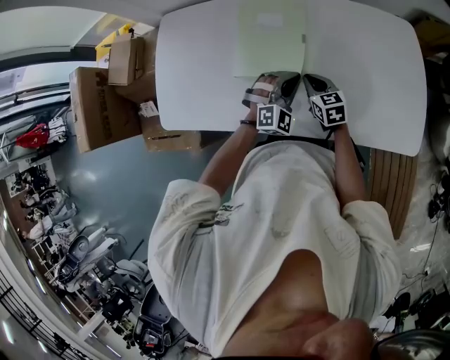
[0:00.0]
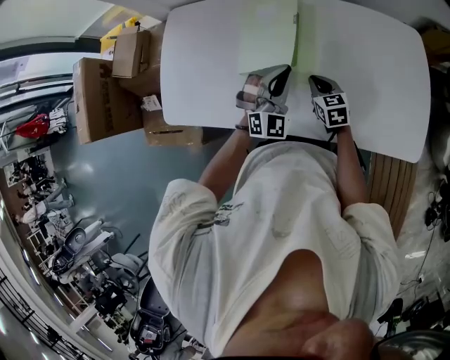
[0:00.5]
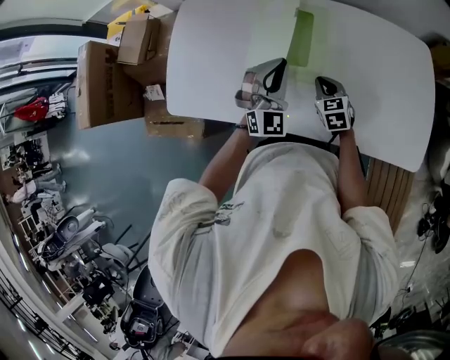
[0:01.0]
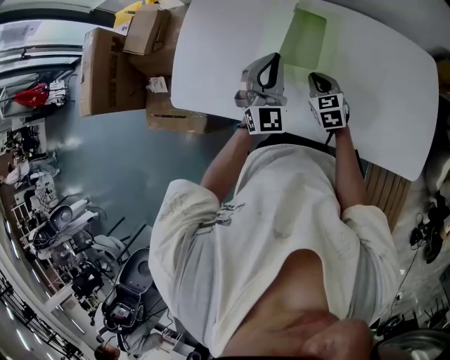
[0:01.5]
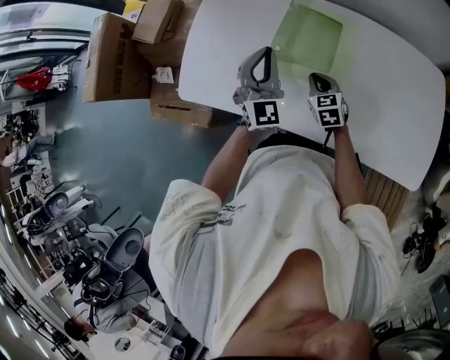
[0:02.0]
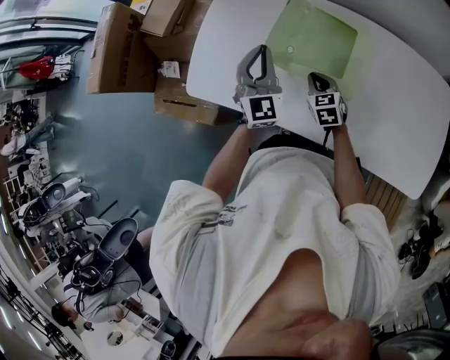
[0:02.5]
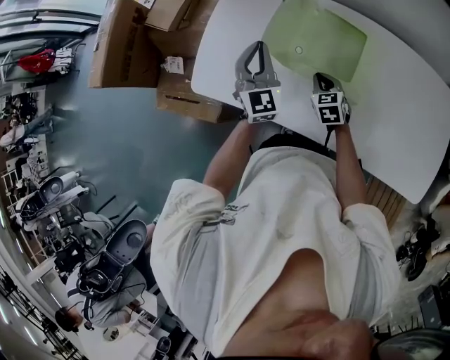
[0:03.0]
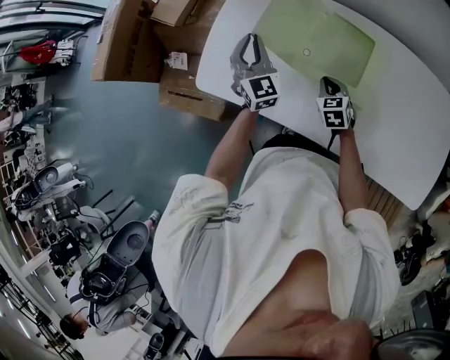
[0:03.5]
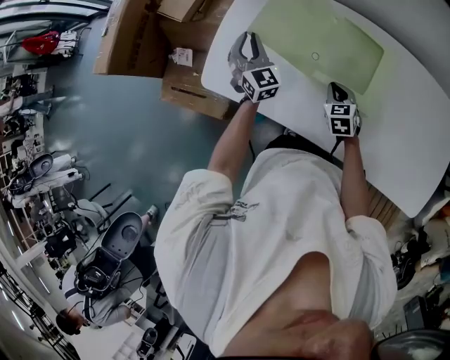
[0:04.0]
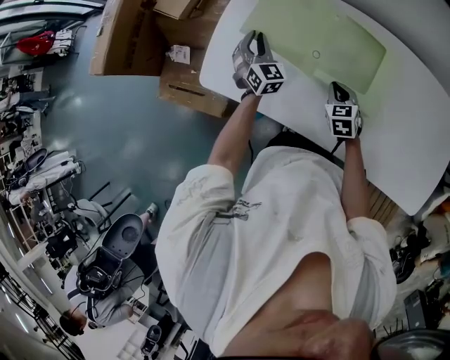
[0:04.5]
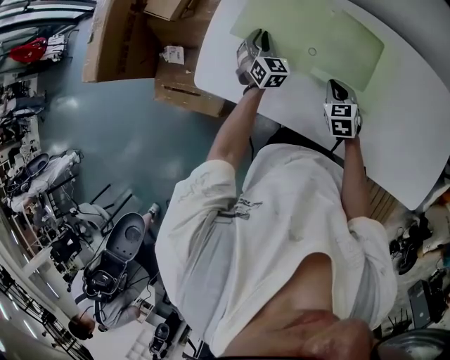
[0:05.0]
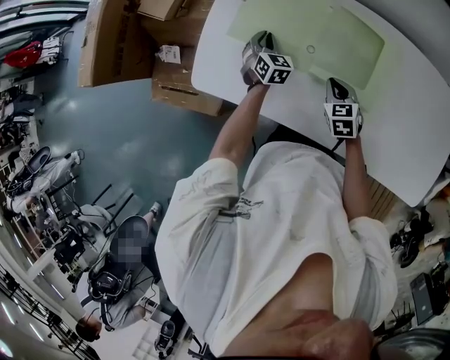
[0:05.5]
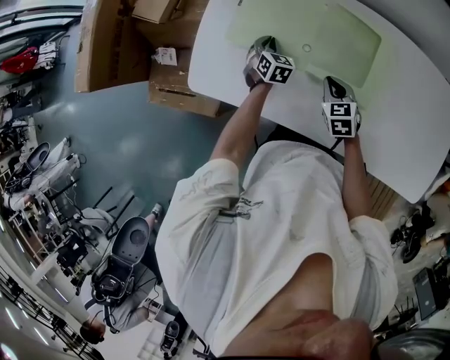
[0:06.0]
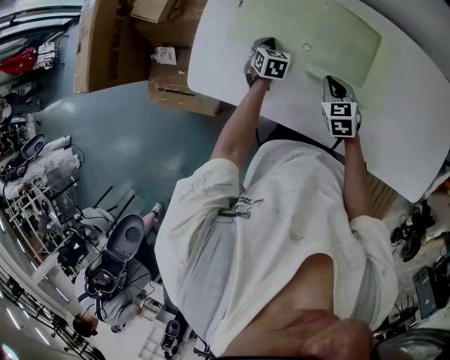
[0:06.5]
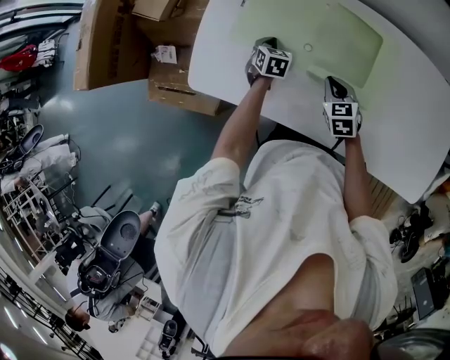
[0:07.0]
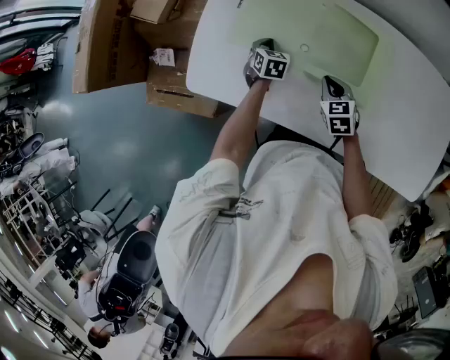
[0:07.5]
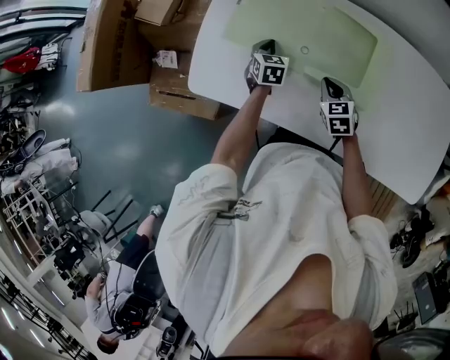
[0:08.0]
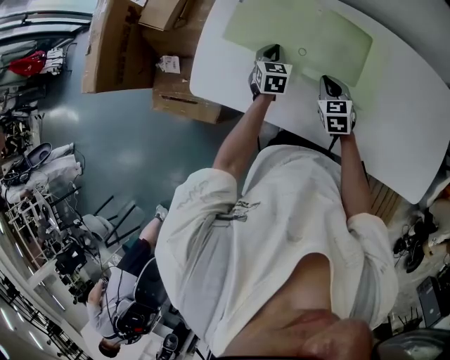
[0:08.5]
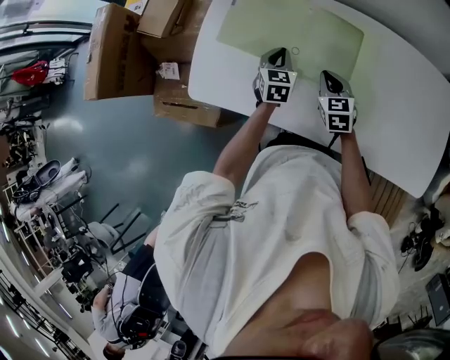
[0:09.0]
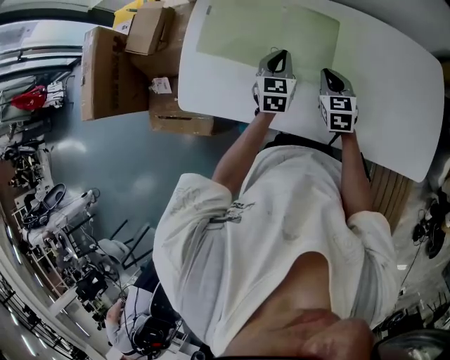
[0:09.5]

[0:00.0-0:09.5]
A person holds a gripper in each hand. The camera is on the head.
0:00.0 to 0:02.0: The left gripper goes approximately 25 cm to the left and upward, and turns by roughly 50 degrees, while the right gripper travels to the left by about 10 cm.
0:02.0 to 0:04.0: The right gripper shifts by approximately 5 cm, while the left gripper travels to the left, forward and downward by approximately 20 cm, and changes its angle by about 30 degrees.
0:04.0 to 0:05.5: The left gripper shifts approximately 15 cm downward and to the right, and turns by about 30 degrees.
0:05.5 to 0:07.5: The left gripper shifts by roughly 5 cm, and rotates roughly 20 degrees.
0:07.5 to 0:09.5: The right gripper goes roughly 10 cm to the right and upward. Meanwhile the left gripper travels upward, to the right and backward by some 20 cm, and changes its angle by roughly 30 degrees.

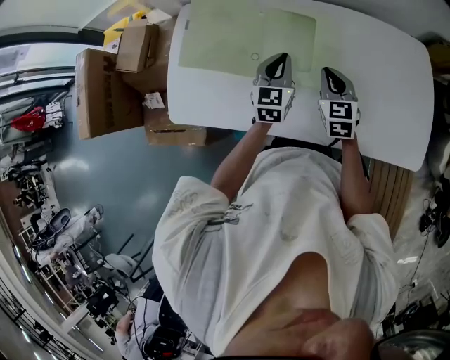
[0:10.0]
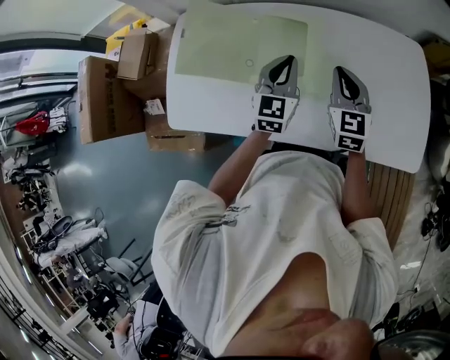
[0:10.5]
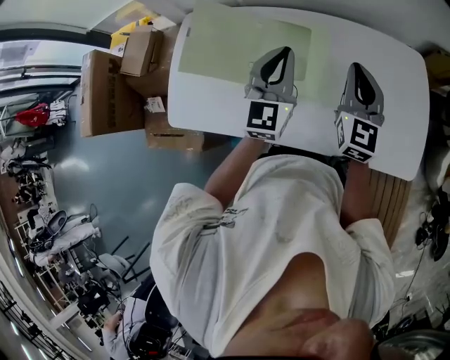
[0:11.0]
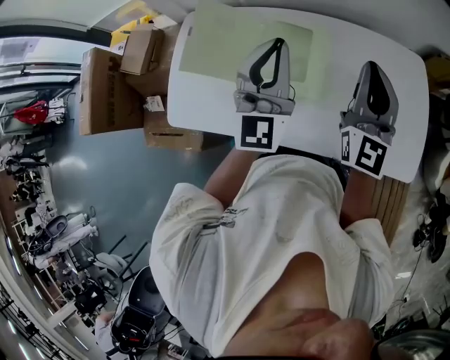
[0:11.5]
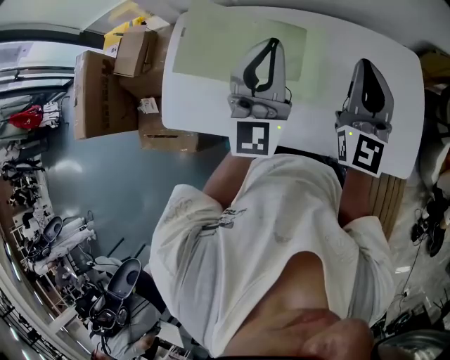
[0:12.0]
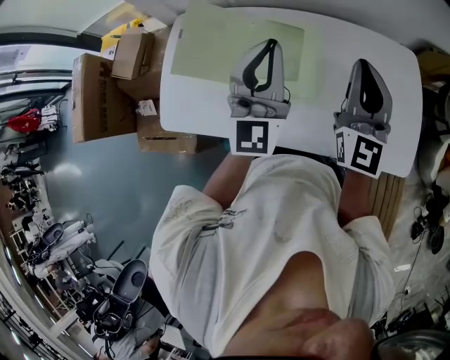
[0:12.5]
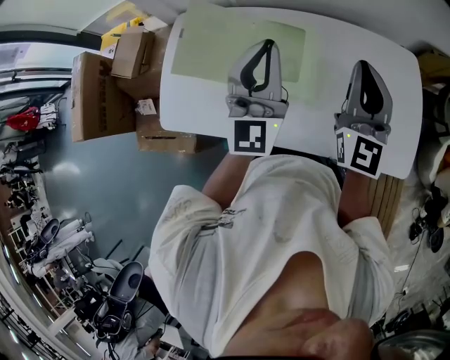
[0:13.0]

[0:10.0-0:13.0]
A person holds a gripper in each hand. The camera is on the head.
0:10.0 to 0:11.5: Both grippers travel together upward, some 25 cm. The left gripper points its fingers some 30 degrees further upward; the right gripper tilts its fingers about 40 degrees upward.
0:11.5 to 0:13.0: Neither gripper changes place.

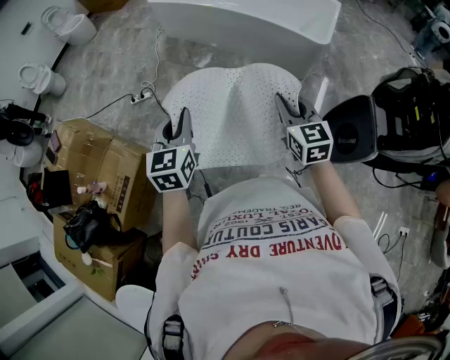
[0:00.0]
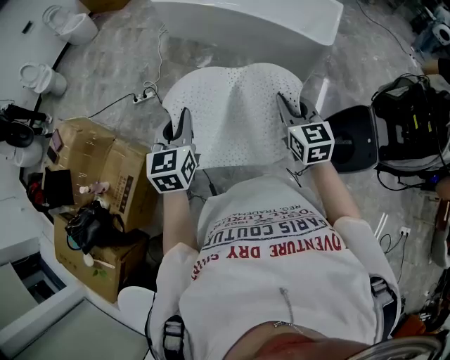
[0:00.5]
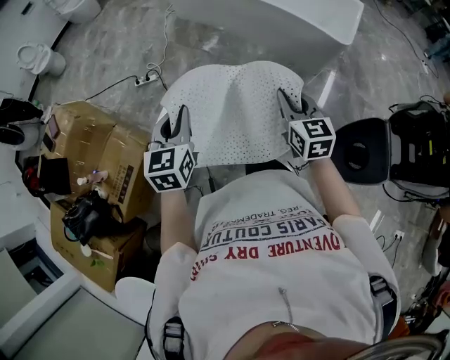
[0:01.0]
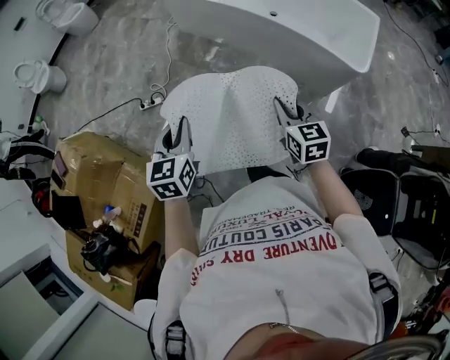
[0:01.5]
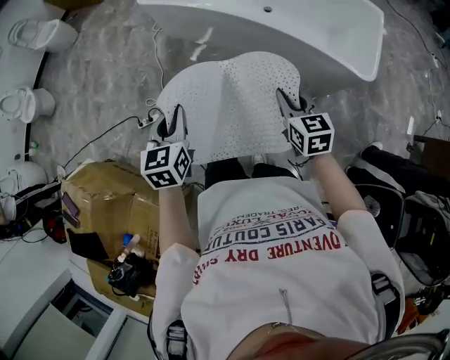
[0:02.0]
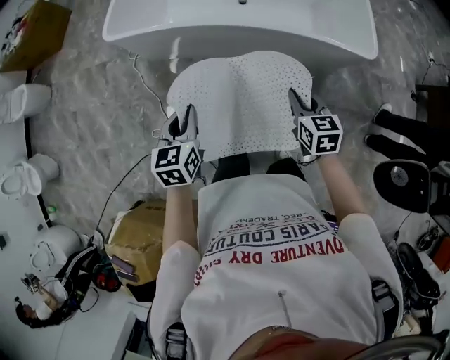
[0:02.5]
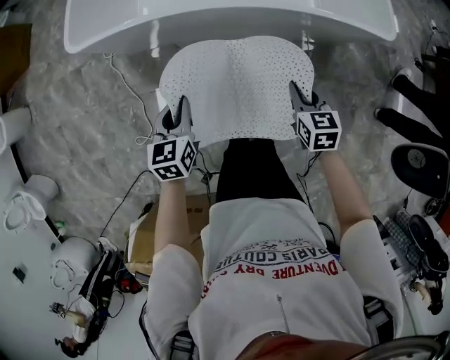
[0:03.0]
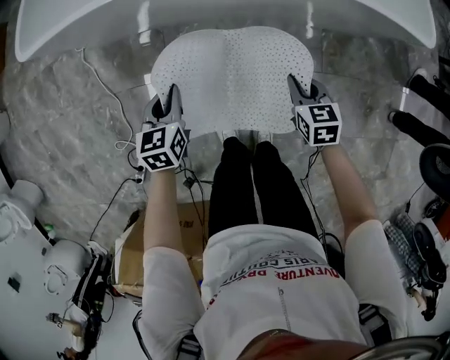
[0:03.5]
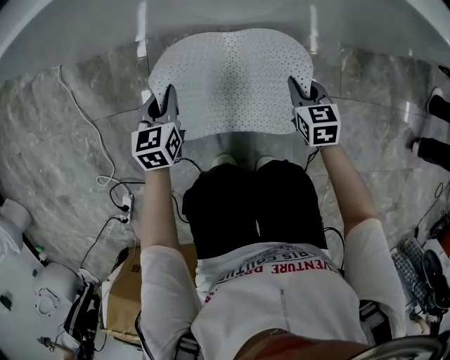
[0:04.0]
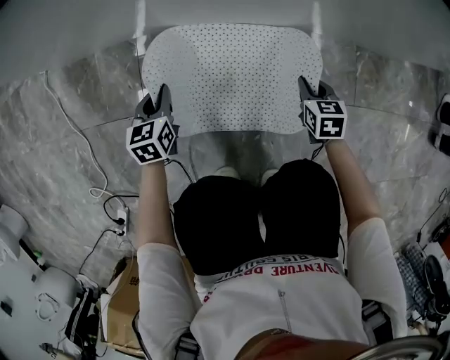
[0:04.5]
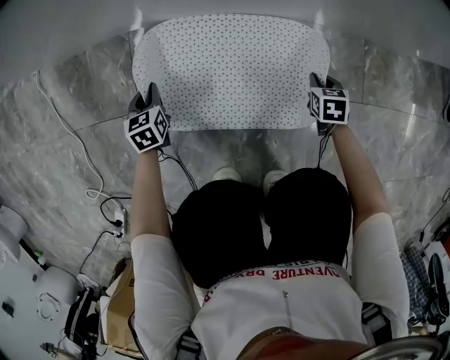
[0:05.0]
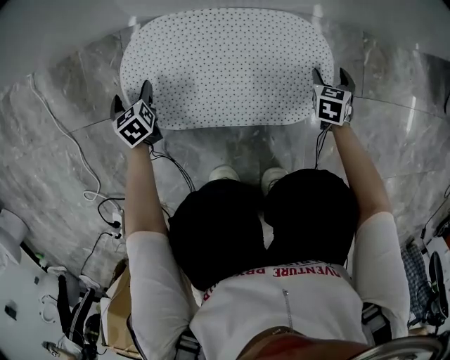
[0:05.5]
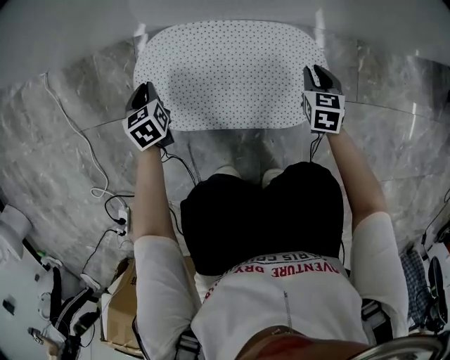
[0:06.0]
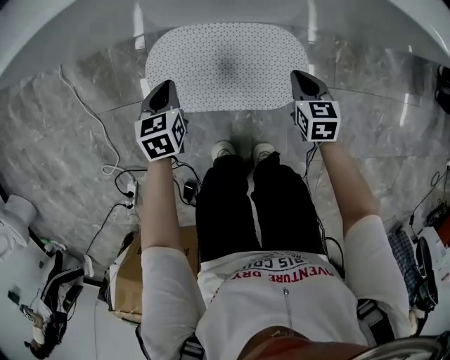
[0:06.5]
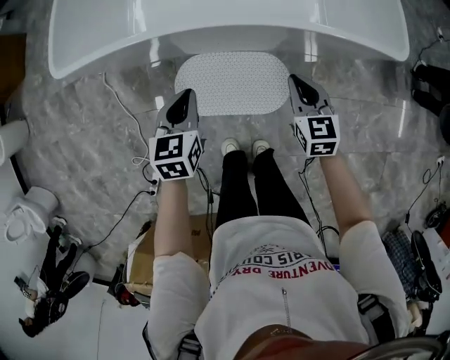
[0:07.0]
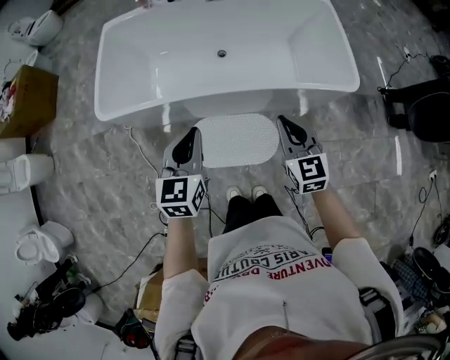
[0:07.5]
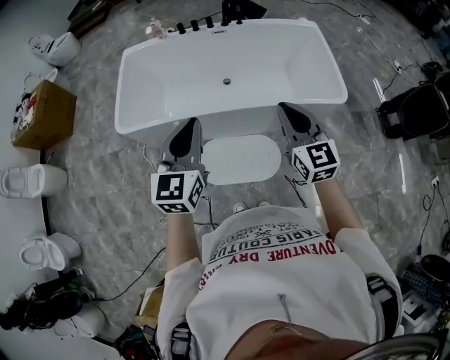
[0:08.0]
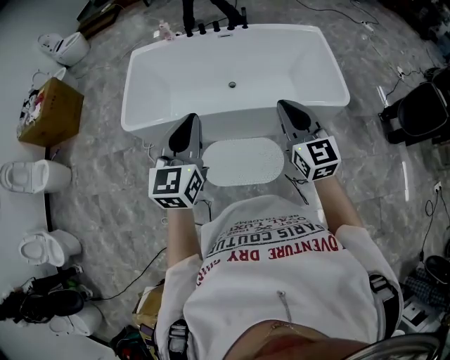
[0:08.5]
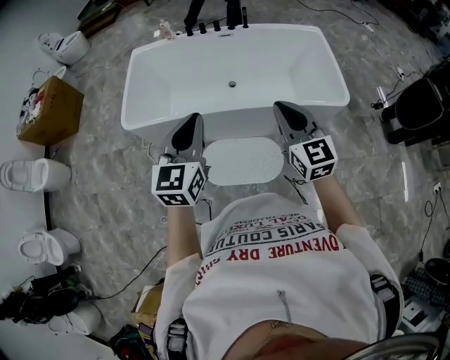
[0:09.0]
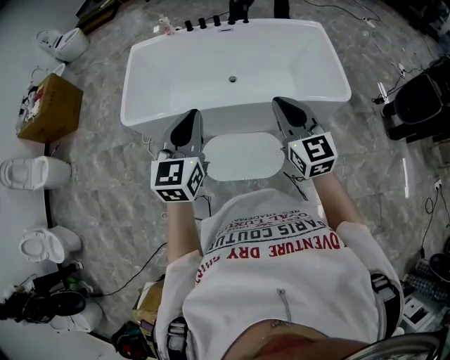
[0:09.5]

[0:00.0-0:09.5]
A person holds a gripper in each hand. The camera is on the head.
0:00.0 to 0:02.0: The pair of grippers is taken forward, about 50 cm.
0:02.0 to 0:04.0: The two grippers go roughly 60 cm downward. The right gripper turns by about 30 degrees. Meanwhile the left gripper swivels roughly 30 degrees.
0:04.0 to 0:05.5: The left gripper heads downward and to the left, covering approximately 30 cm, turns by about 30 degrees, and opens. The right gripper shifts about 25 cm downward and to the right, swivels roughly 30 degrees, and opens its fingers.
0:05.5 to 0:07.5: The grippers both shift upward by about 90 cm. The right gripper tips its fingers upward by about 30 degrees, and closes up. Meanwhile the left gripper rotates approximately 40 degrees, and closes.
0:07.5 to 0:09.5: The left gripper heads upward and backward, covering some 15 cm. Meanwhile the right gripper is displaced upward by roughly 15 cm.

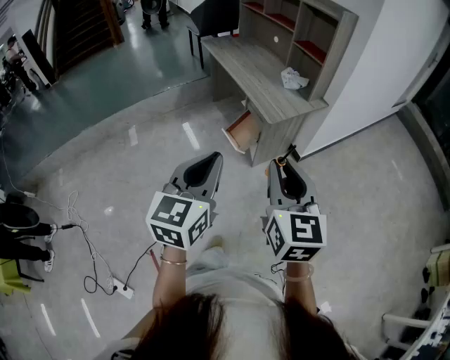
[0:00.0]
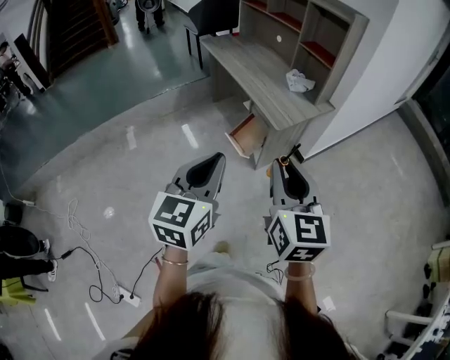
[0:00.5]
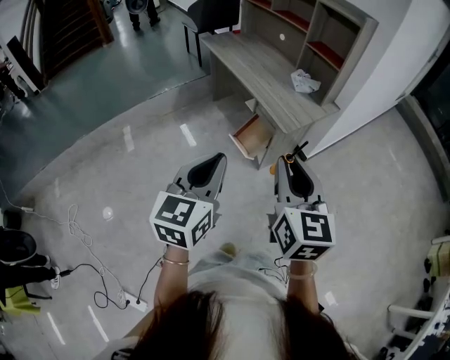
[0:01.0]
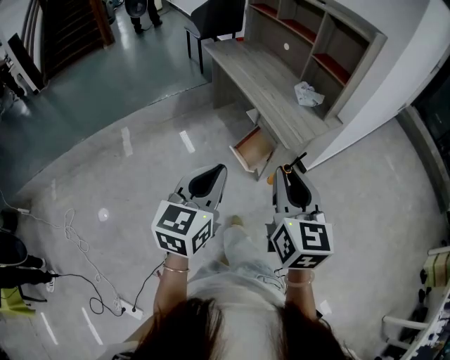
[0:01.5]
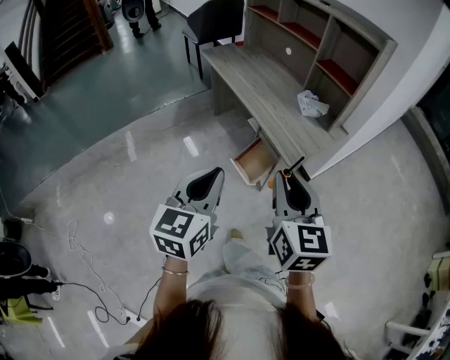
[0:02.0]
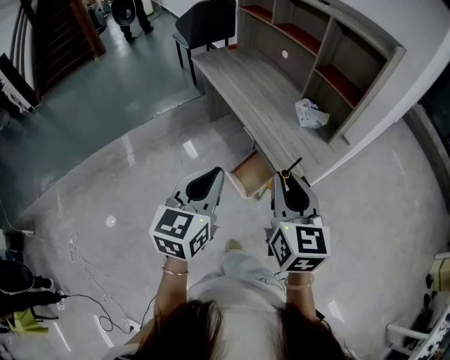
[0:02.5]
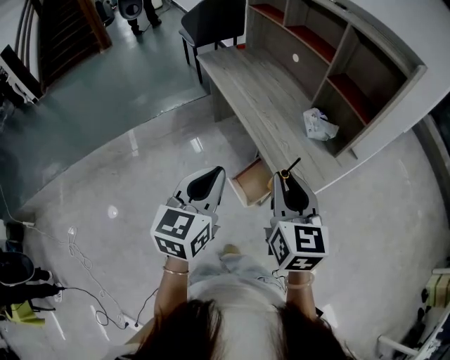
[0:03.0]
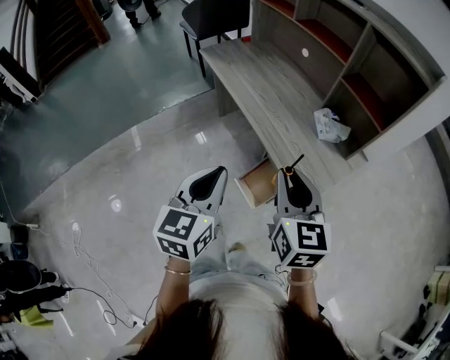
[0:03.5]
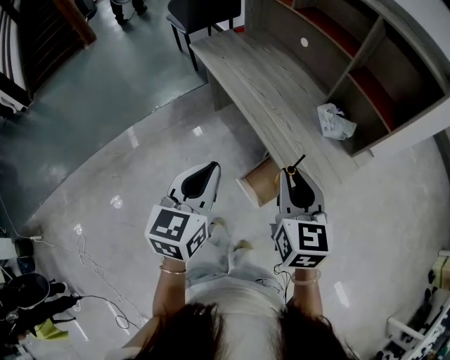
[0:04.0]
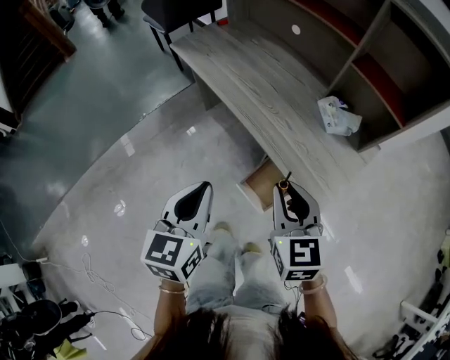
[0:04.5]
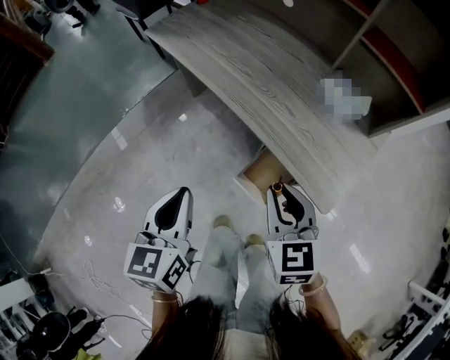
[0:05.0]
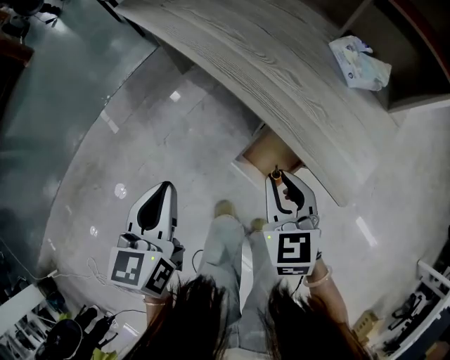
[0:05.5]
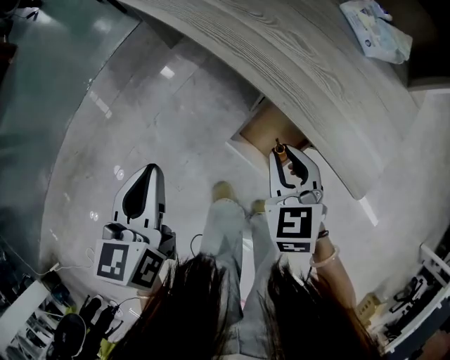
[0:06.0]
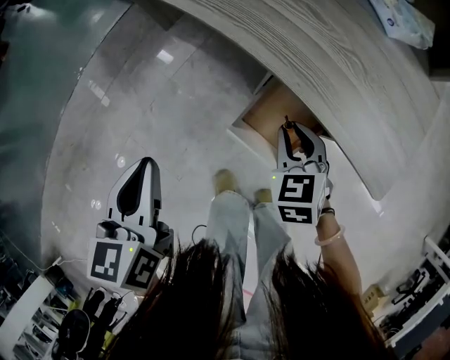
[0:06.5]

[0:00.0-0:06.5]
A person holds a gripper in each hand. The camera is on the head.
0:00.0 to 0:02.0: Both grippers move forward and to the left, approximately 25 cm.
0:02.0 to 0:04.5: The right gripper goes some 35 cm forward and downward, while the left gripper goes roughly 30 cm forward.
0:04.5 to 0:06.5: The grippers both shift downward by some 30 cm. The right gripper changes its angle by approximately 30 degrees.
